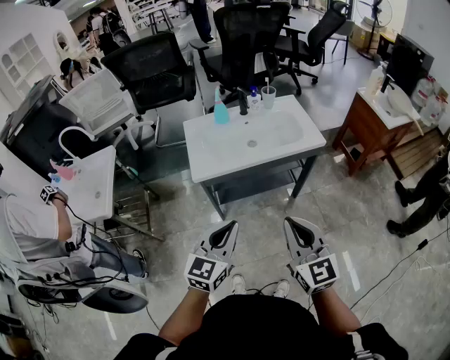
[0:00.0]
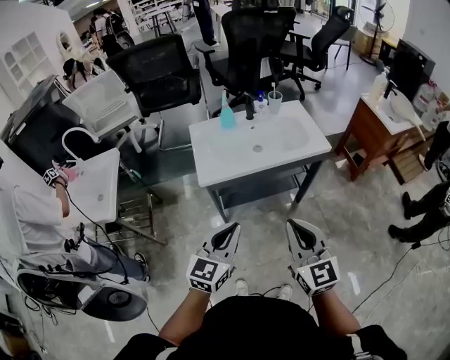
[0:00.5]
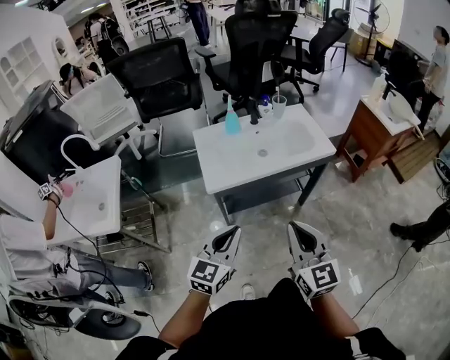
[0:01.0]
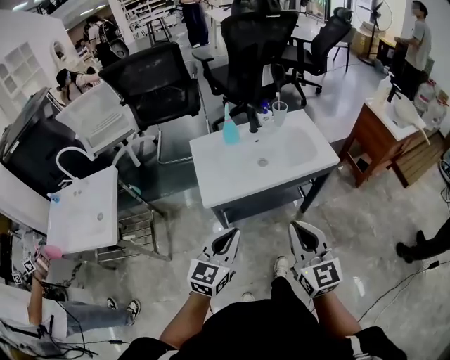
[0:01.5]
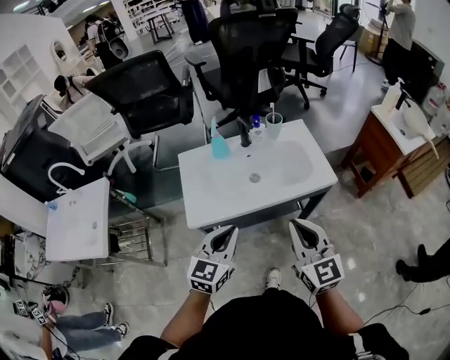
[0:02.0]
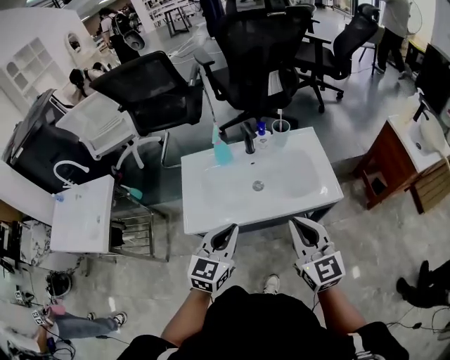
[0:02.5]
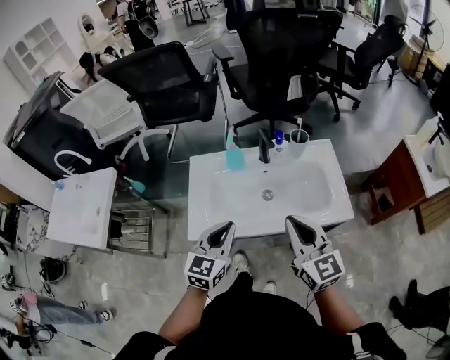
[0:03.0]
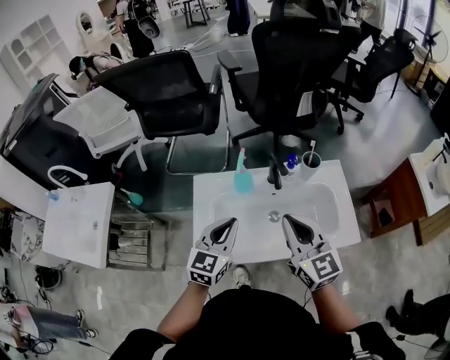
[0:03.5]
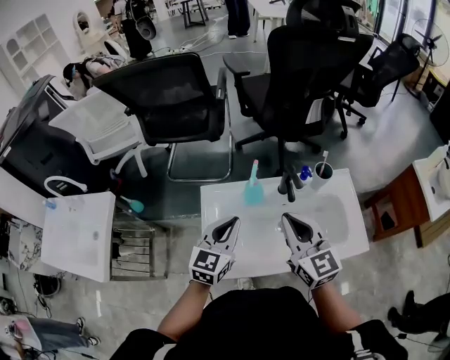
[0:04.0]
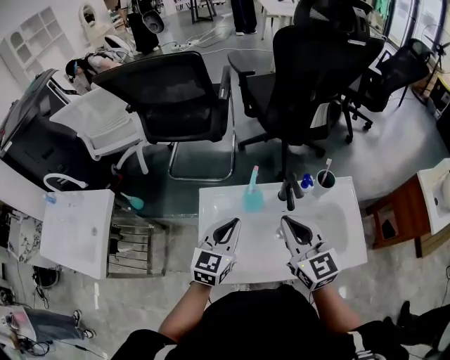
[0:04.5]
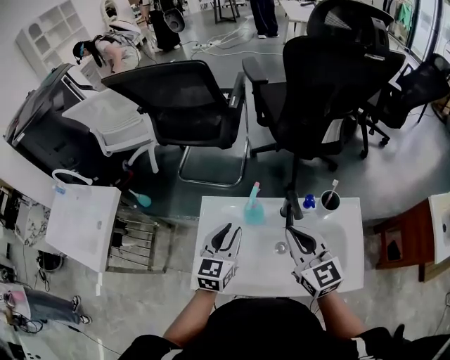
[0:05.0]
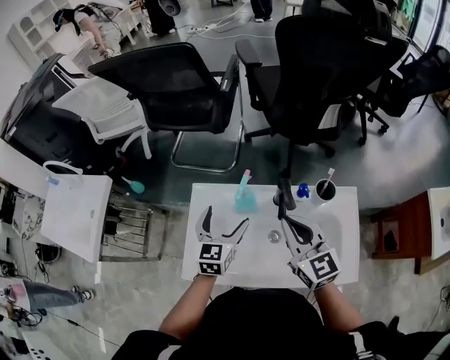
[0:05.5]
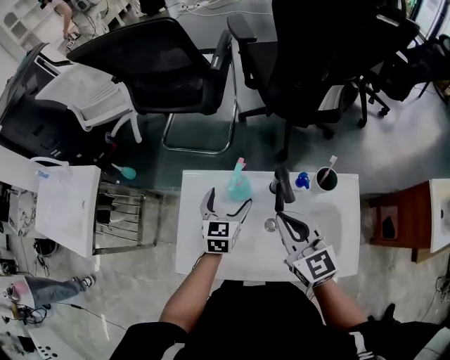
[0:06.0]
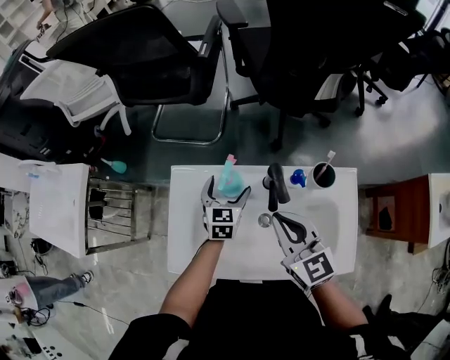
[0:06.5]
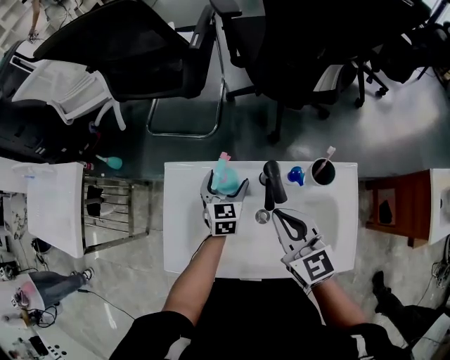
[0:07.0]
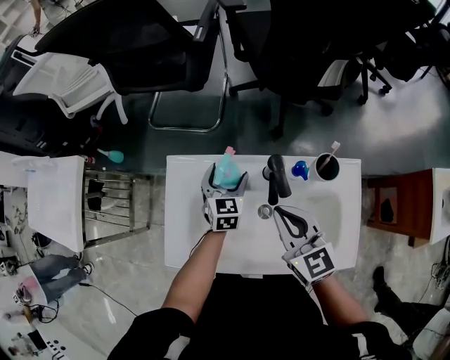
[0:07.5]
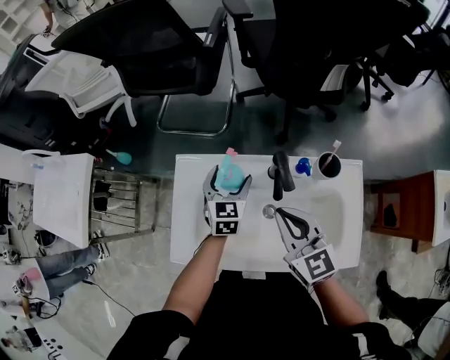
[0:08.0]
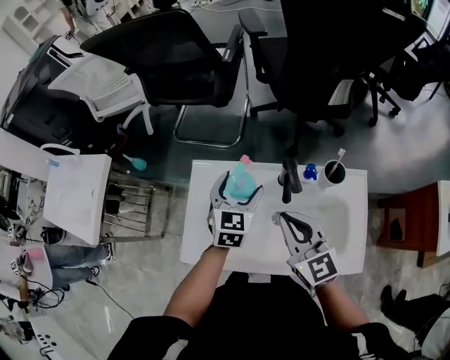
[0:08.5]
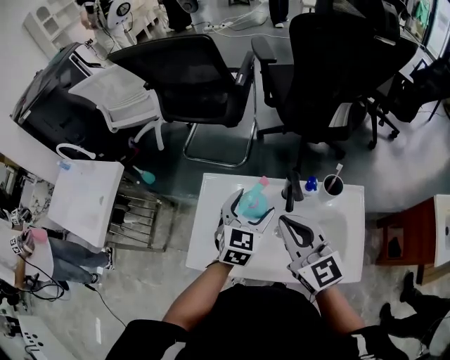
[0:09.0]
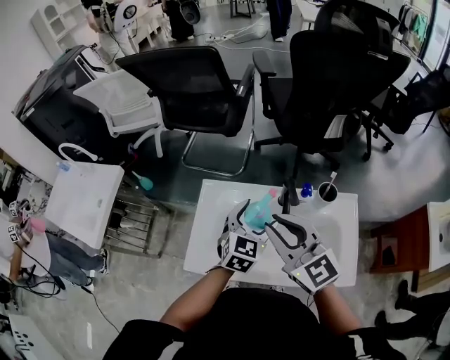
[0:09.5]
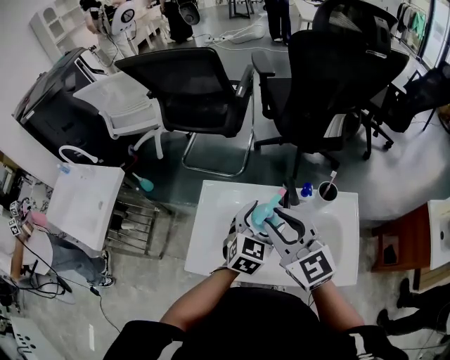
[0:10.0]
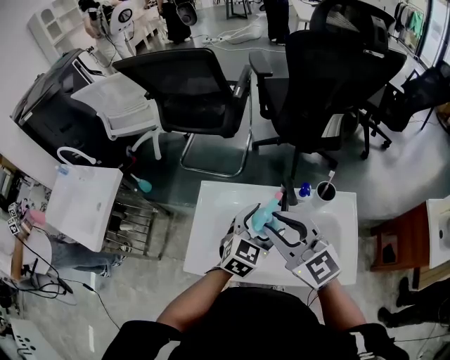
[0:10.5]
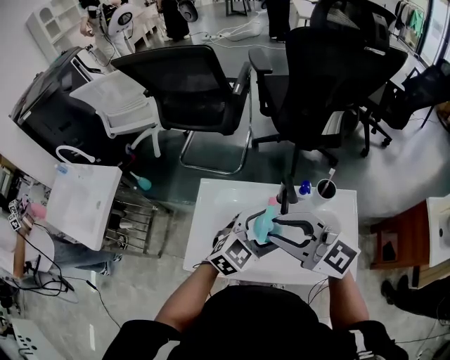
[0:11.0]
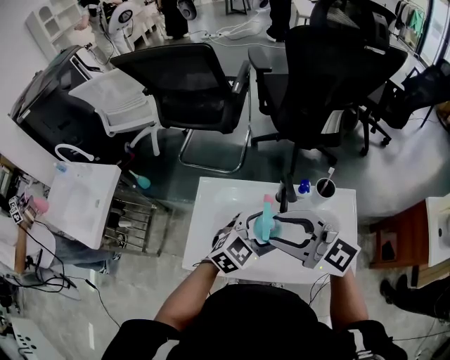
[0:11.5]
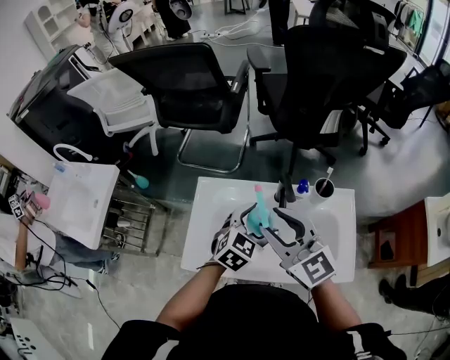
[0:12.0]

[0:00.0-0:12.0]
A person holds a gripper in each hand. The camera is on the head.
0:00.0 to 0:02.0: The two grippers go roughly 20 cm forward.
0:02.0 to 0:04.0: Both grippers travel together forward, roughly 30 cm.
0:04.0 to 0:06.0: The right gripper travels forward, downward and to the right by roughly 10 cm; the left gripper moves downward, forward and to the right, roughly 20 cm, turns by some 20 degrees, and opens its fingers.
0:08.0 to 0:10.0: The right gripper travels upward and to the left by approximately 15 cm, and opens its fingers. Meanwhile the left gripper is displaced upward, backward and to the right by some 20 cm.

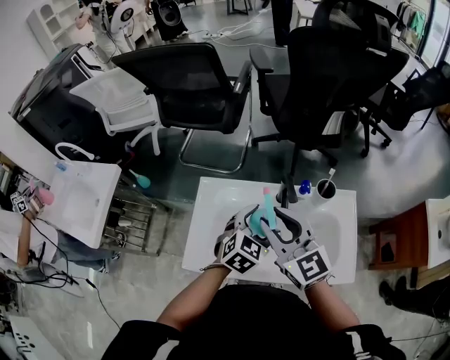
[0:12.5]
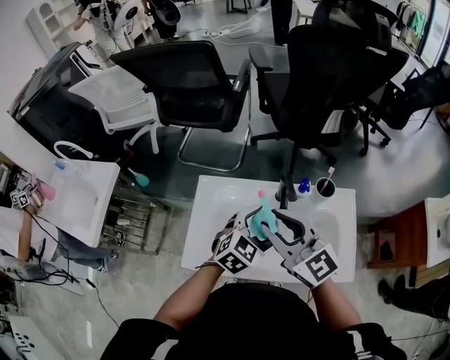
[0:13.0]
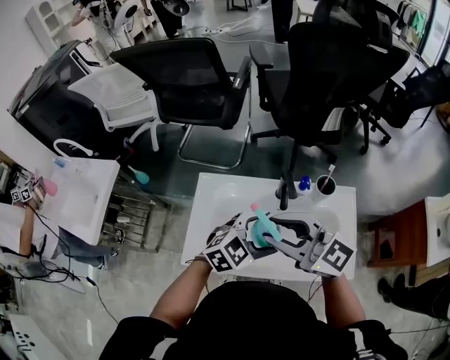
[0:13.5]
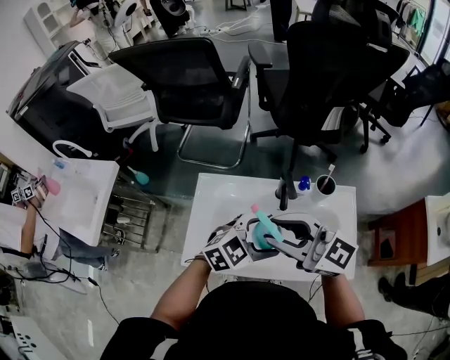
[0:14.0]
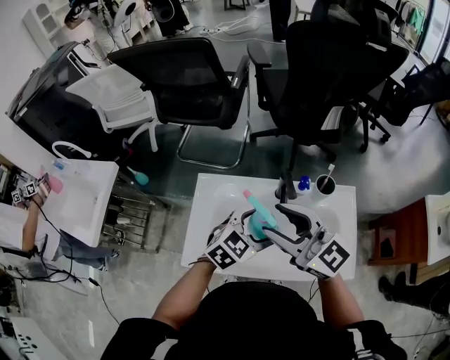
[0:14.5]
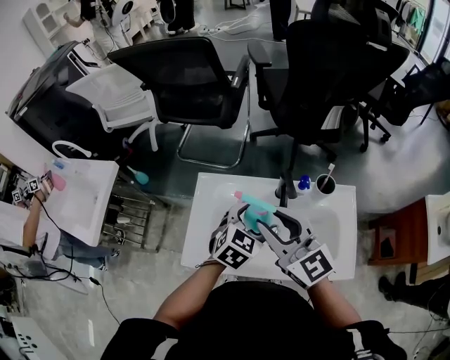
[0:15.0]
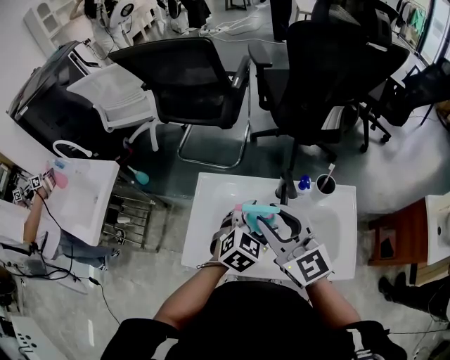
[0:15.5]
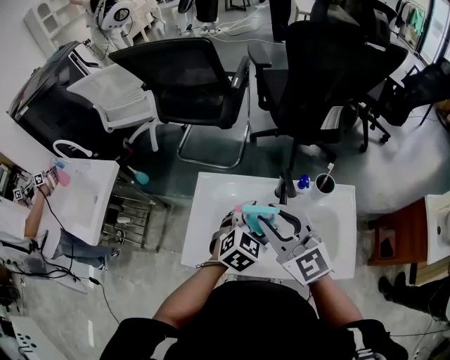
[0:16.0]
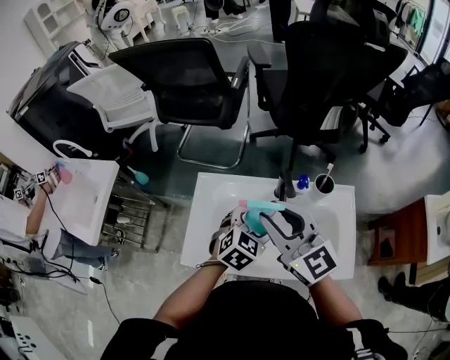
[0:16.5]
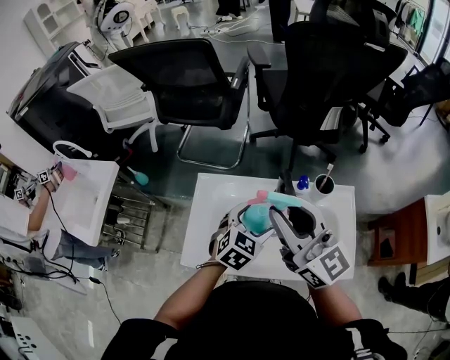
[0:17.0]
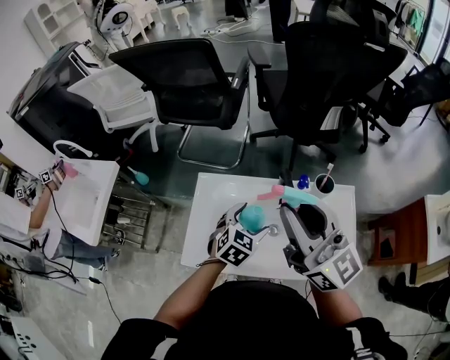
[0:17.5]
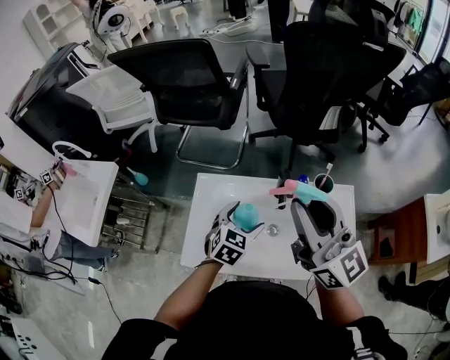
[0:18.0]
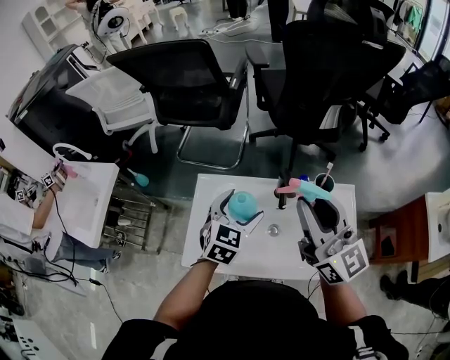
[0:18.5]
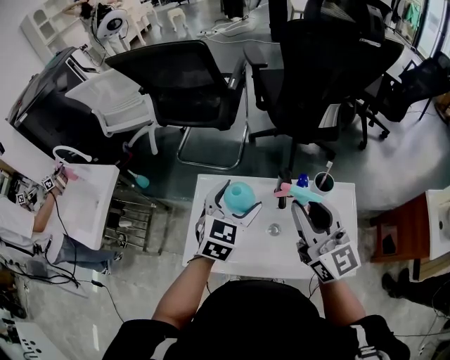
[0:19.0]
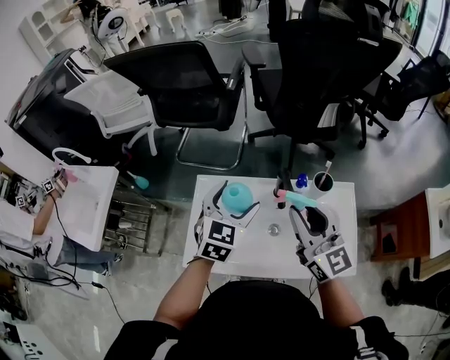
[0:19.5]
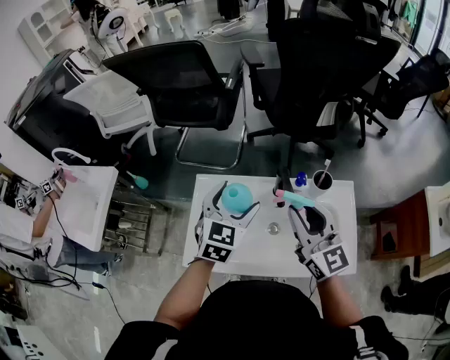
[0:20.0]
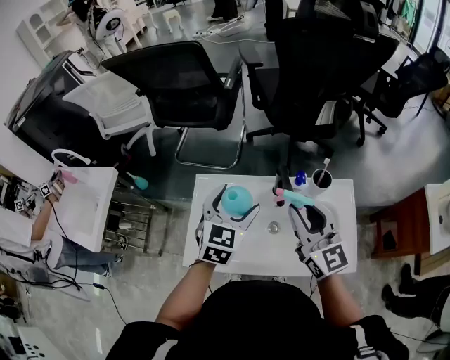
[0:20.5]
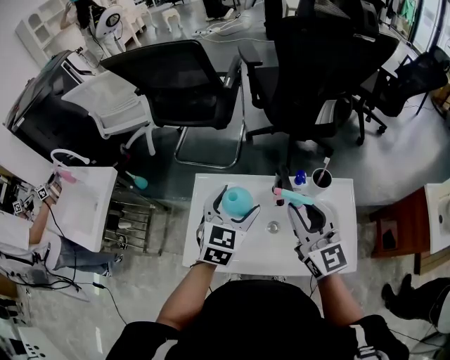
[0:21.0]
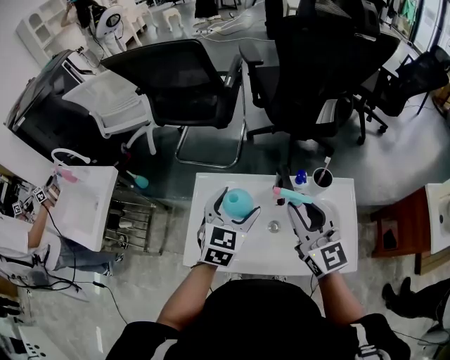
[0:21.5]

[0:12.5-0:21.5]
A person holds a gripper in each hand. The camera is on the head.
0:12.5 to 0:14.5: The right gripper changes its angle by about 20 degrees.
0:14.5 to 0:17.0: The right gripper heads upward, covering approximately 5 cm.
0:17.0 to 0:19.5: The left gripper is displaced upward, to the left and forward by roughly 10 cm. The right gripper heads downward and to the right, covering roughly 10 cm.
0:19.5 to 0:21.5: The grippers make only small movements.

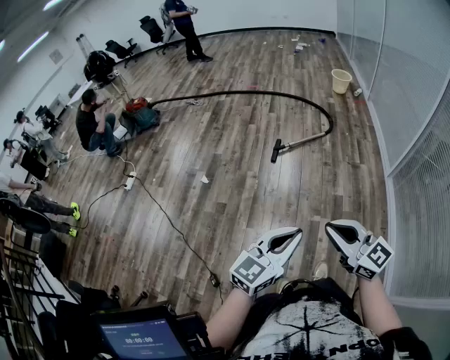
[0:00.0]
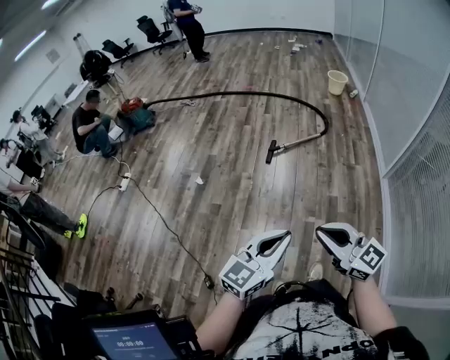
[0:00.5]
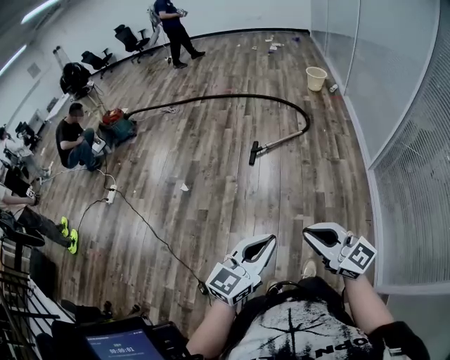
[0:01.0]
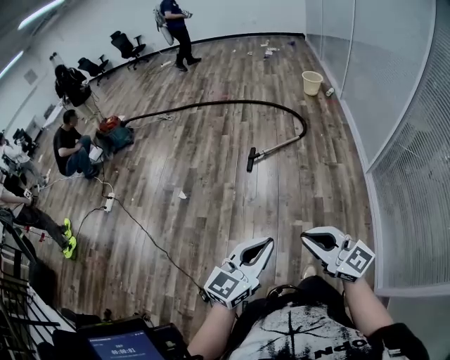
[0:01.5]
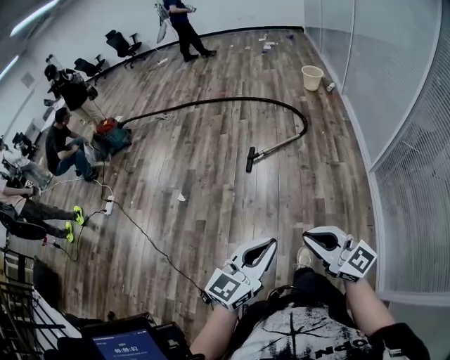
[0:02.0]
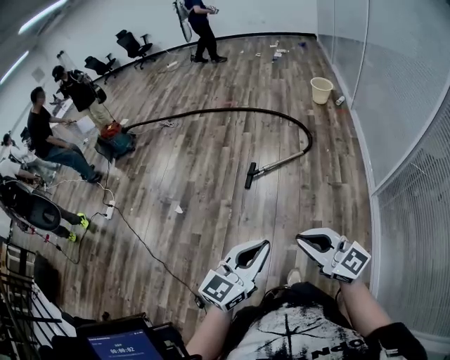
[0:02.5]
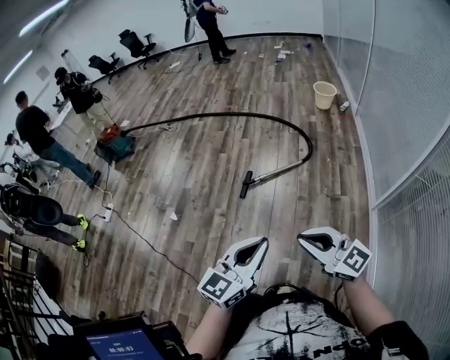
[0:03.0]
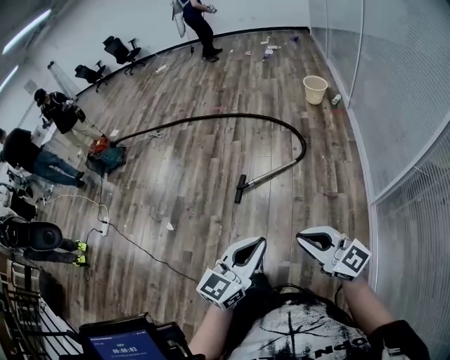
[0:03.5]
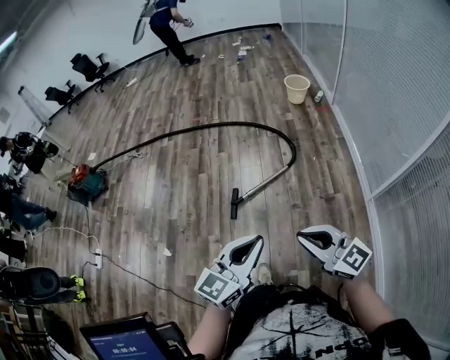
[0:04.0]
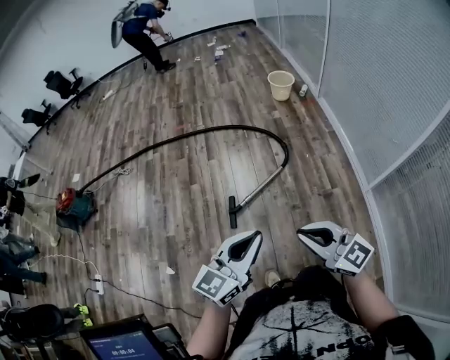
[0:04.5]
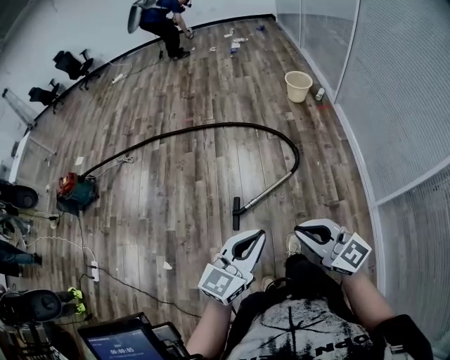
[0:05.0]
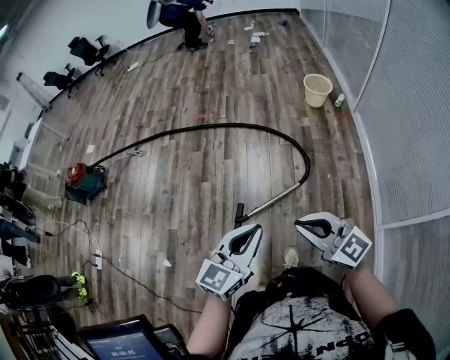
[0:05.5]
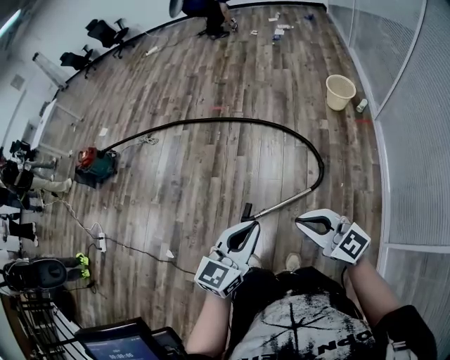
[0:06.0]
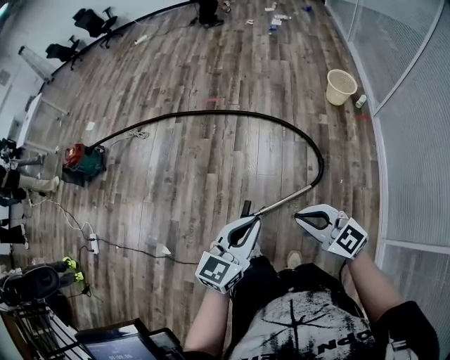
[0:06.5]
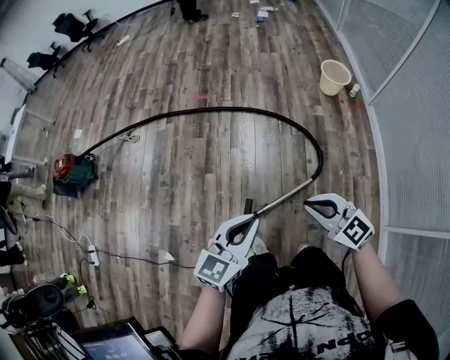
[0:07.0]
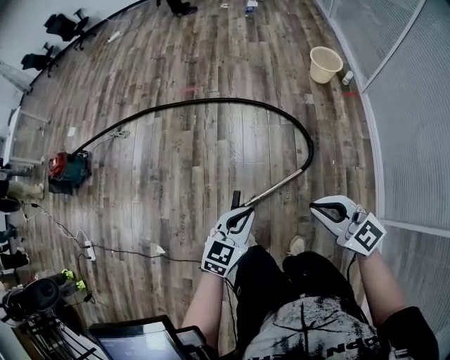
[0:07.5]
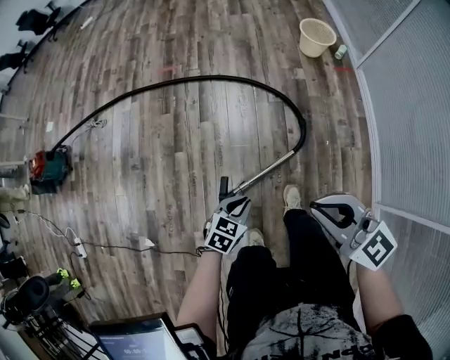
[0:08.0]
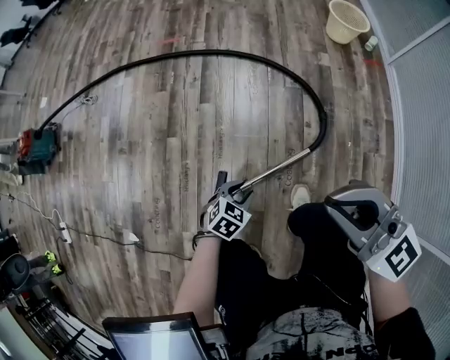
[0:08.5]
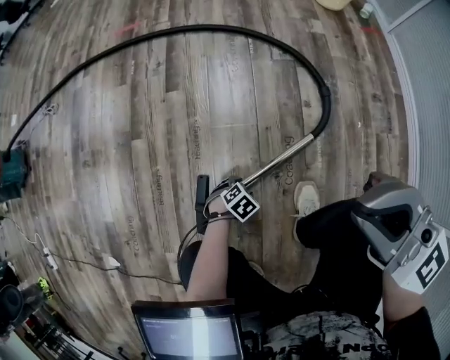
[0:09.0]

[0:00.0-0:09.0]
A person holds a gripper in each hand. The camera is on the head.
0:00.0 to 0:02.0: Both grippers travel together forward, about 5 cm.
0:02.0 to 0:04.5: The pair of grippers is taken forward, approximately 50 cm.
0:04.5 to 0:07.0: The grippers both shift forward by about 40 cm. The right gripper changes its angle by about 30 degrees.
0:07.0 to 0:09.0: The left gripper moves downward, about 80 cm, angles its fingers downward, by roughly 60 degrees, and opens its fingers, while the right gripper moves downward, approximately 25 cm, and rotates some 30 degrees.
